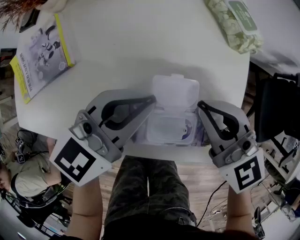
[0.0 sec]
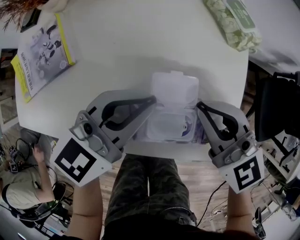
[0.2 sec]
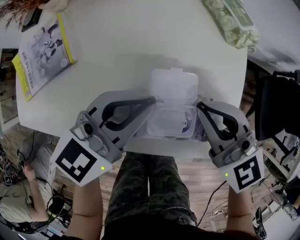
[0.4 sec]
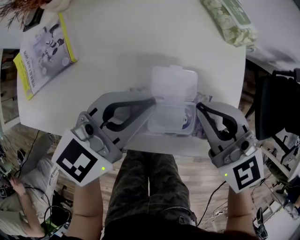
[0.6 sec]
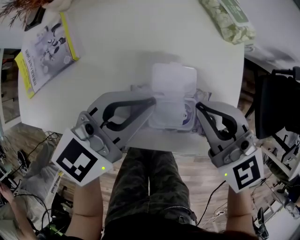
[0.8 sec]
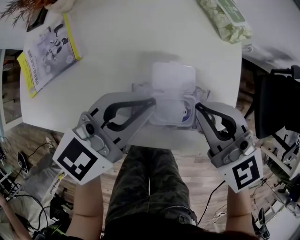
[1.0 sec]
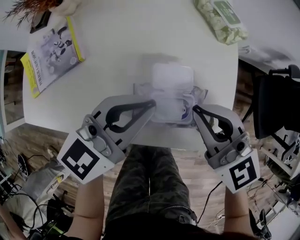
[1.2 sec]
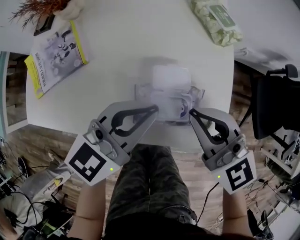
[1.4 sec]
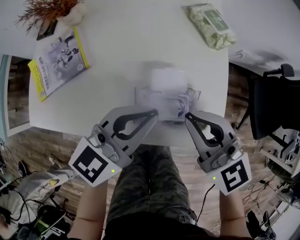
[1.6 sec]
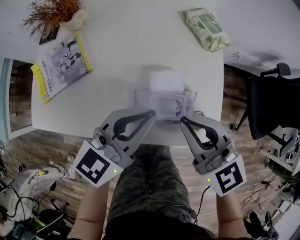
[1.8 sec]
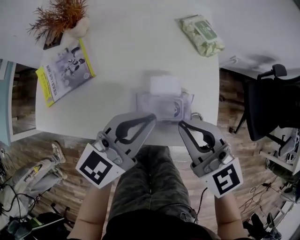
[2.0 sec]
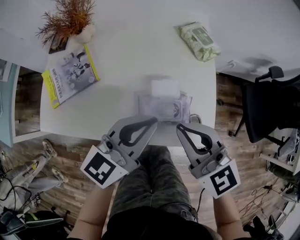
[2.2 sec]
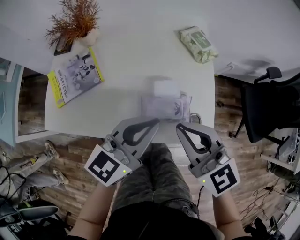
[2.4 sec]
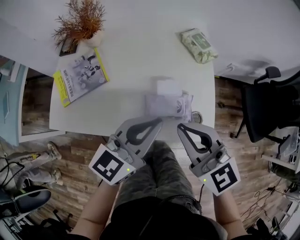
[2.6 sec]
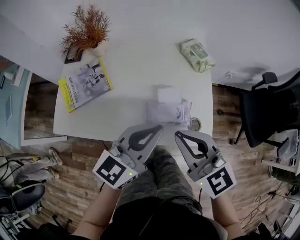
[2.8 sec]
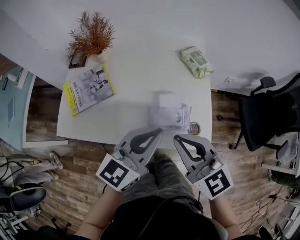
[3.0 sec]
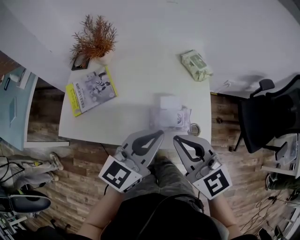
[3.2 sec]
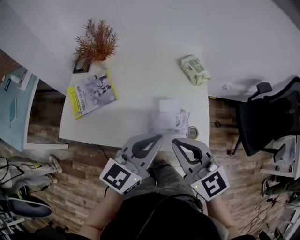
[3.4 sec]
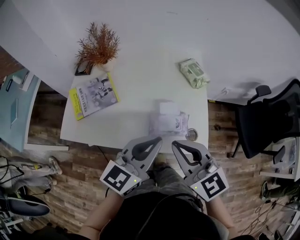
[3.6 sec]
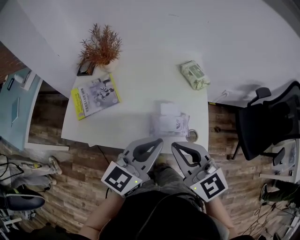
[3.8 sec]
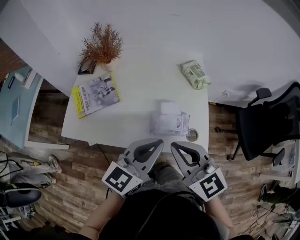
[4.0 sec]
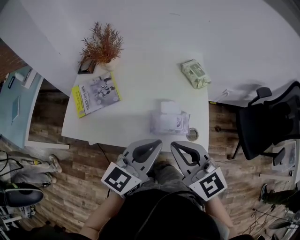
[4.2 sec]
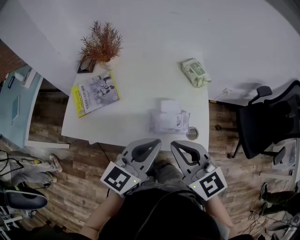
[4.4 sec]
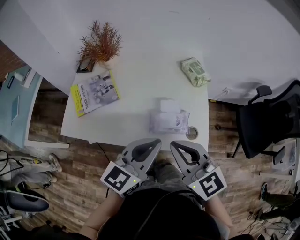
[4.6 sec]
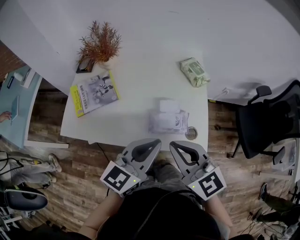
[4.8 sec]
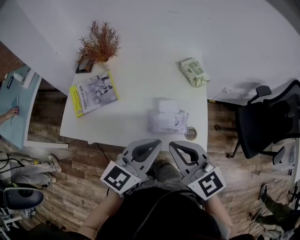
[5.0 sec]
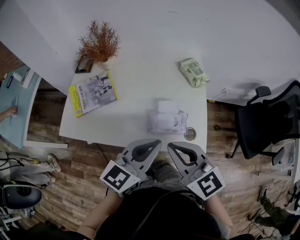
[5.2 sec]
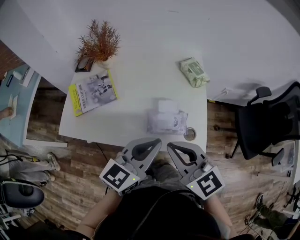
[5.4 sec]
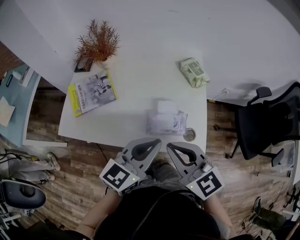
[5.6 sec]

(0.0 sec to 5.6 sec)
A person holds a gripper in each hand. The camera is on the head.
0.0 sec - 1.4 sec: Both grippers travel together backward, about 5 cm.
1.4 sec - 2.8 sec: The grippers both shift upward and backward by approximately 10 cm.
2.8 sec - 5.6 sec: There are only small adjustments of the grippers.

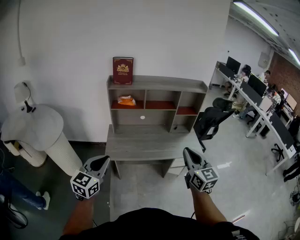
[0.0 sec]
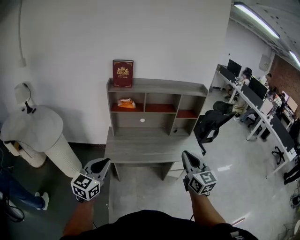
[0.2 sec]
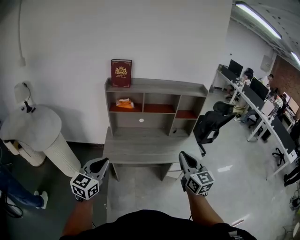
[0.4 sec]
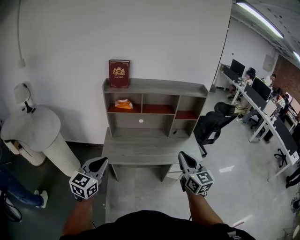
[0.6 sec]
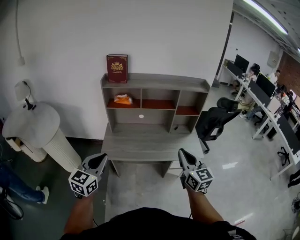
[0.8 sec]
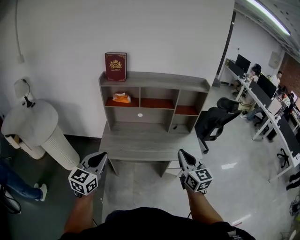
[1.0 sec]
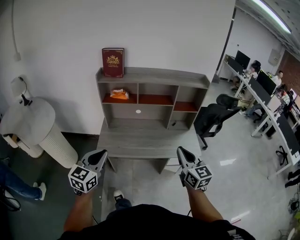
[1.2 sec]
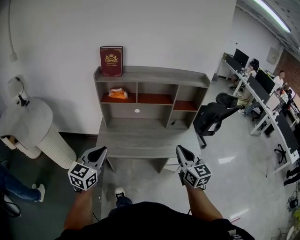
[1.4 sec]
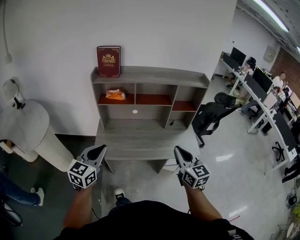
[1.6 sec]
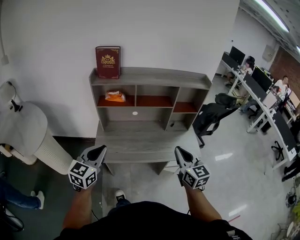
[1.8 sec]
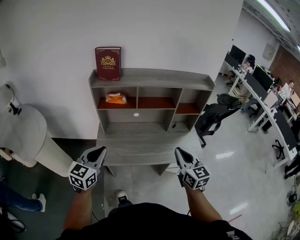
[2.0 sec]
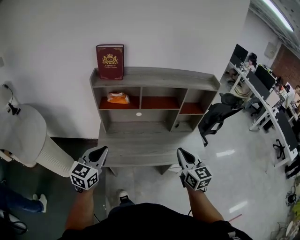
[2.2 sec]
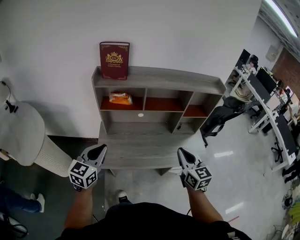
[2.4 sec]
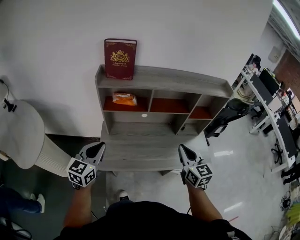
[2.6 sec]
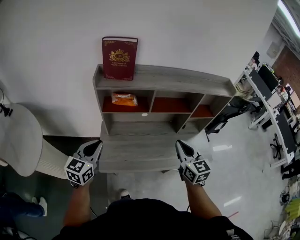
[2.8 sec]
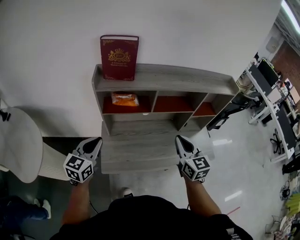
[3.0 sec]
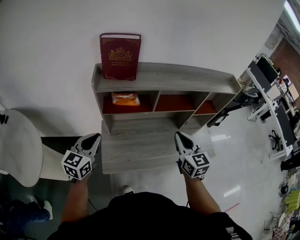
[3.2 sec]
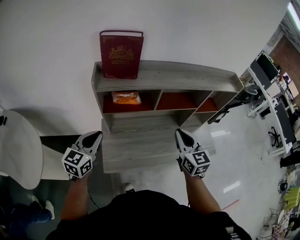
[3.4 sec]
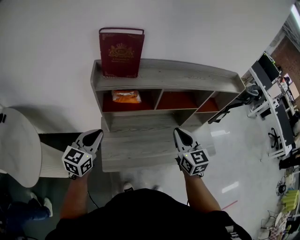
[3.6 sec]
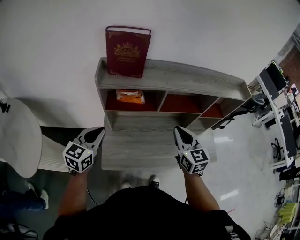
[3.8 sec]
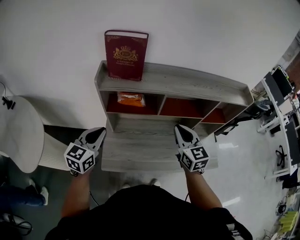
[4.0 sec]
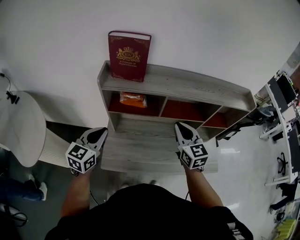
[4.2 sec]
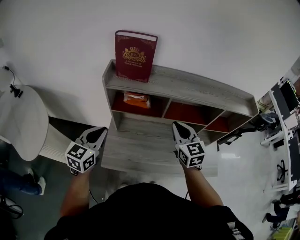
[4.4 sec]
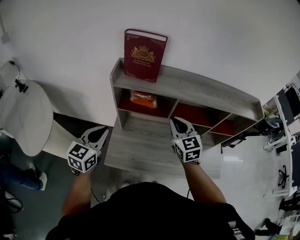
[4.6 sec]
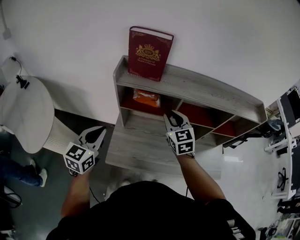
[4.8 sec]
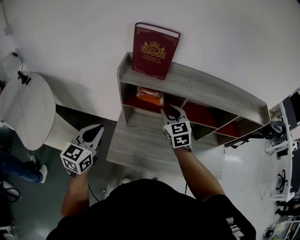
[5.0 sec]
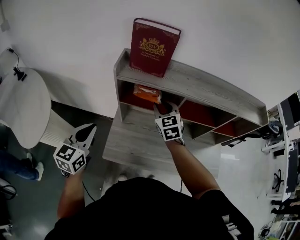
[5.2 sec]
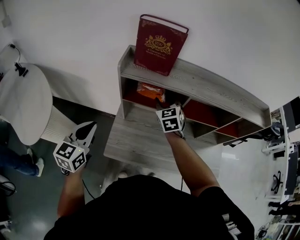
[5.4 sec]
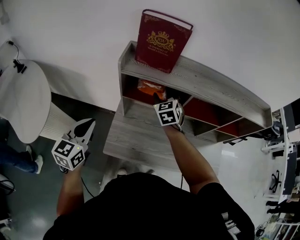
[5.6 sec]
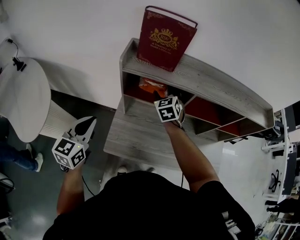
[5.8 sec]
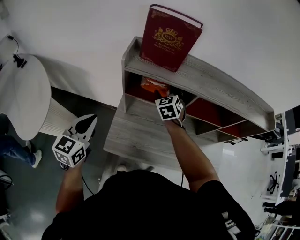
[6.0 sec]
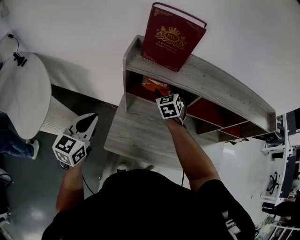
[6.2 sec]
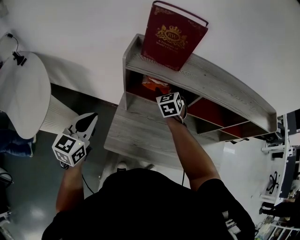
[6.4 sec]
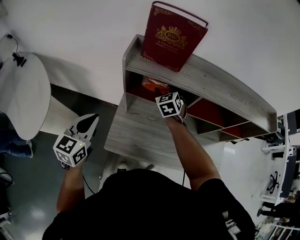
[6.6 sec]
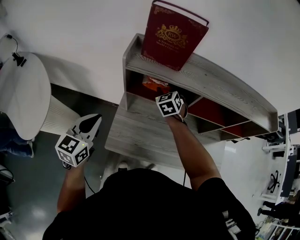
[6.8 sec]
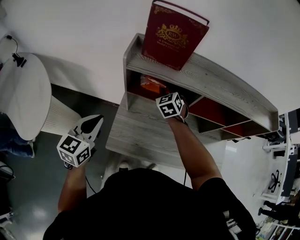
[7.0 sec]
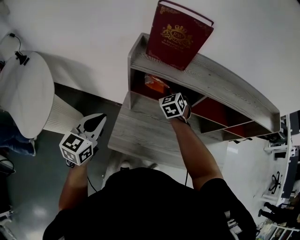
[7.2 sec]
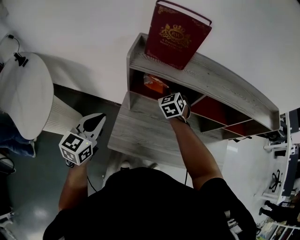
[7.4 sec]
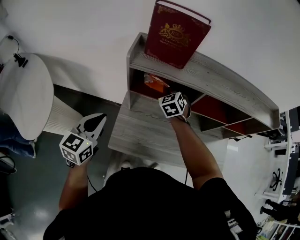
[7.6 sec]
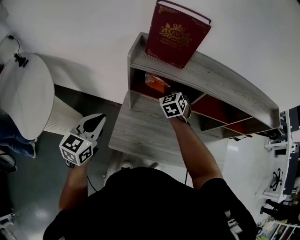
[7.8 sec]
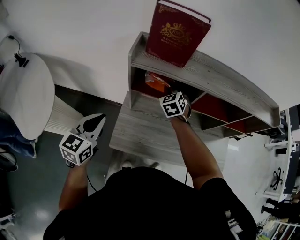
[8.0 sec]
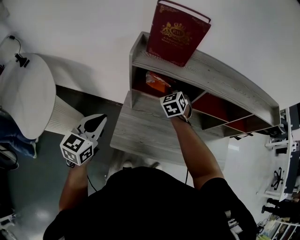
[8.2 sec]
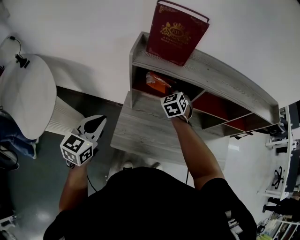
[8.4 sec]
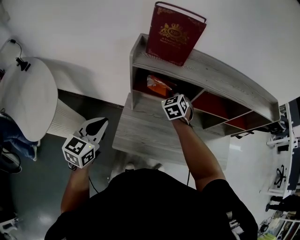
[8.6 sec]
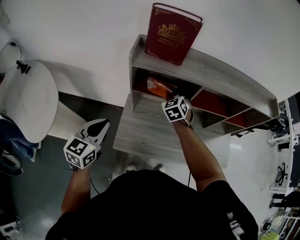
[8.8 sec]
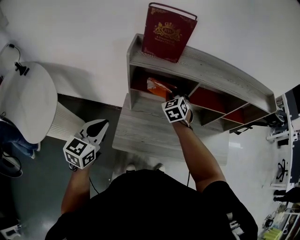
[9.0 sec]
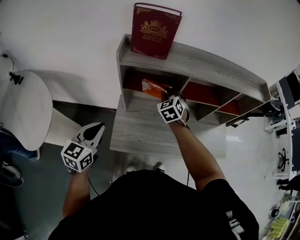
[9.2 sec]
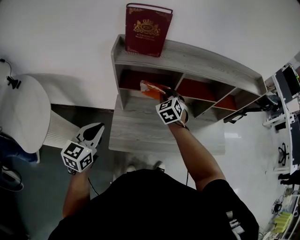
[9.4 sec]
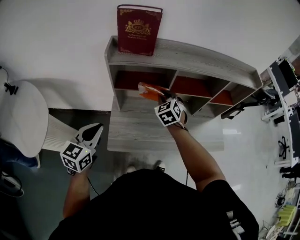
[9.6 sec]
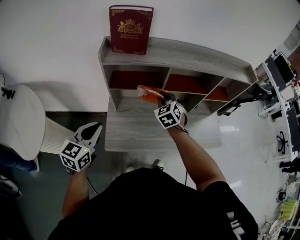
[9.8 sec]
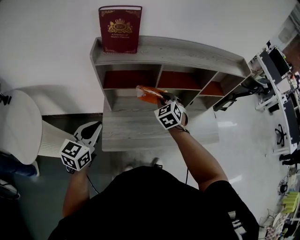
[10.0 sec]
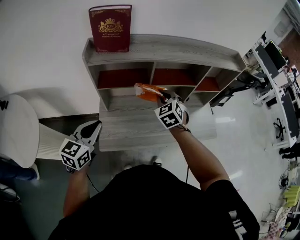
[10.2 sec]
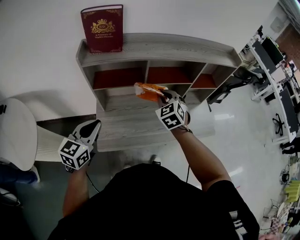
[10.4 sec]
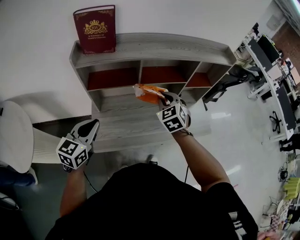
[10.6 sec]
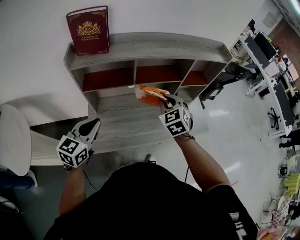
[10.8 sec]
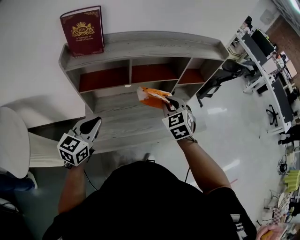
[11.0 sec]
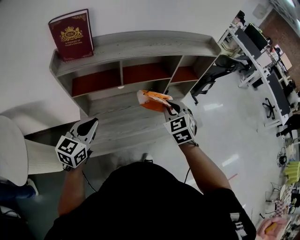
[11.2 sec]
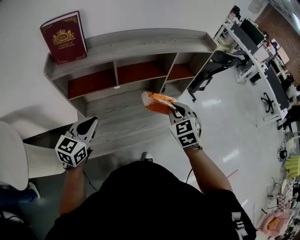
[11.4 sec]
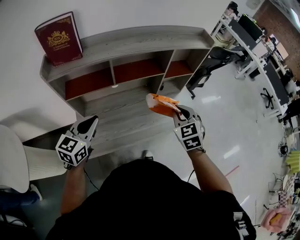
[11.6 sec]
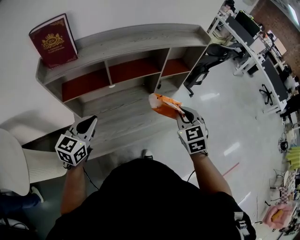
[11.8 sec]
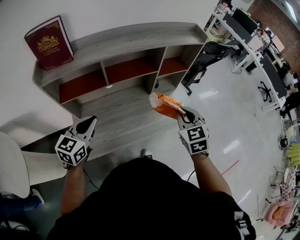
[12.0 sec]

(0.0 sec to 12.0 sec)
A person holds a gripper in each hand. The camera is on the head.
0.0 sec - 1.6 sec: The left gripper goes some 15 cm forward and to the right. The right gripper is displaced forward and downward by roughly 15 cm.
1.6 sec - 3.0 sec: The grippers both shift forward and to the left by about 30 cm.
3.0 sec - 4.4 sec: The right gripper is displaced forward by about 10 cm.
4.4 sec - 6.0 sec: The left gripper travels to the left by approximately 10 cm, while the right gripper moves forward, to the left and downward, about 25 cm, changes its angle by some 30 degrees, and opens.
6.0 sec - 7.6 sec: The right gripper closes up.
7.6 sec - 9.0 sec: The left gripper changes place by approximately 5 cm; the right gripper travels backward by roughly 5 cm.
9.0 sec - 10.4 sec: The right gripper goes about 20 cm to the right and backward, while the left gripper travels to the right by roughly 10 cm.
10.4 sec - 12.0 sec: The right gripper travels to the right by about 25 cm, and changes its angle by some 20 degrees; the left gripper is displaced to the right and forward by some 15 cm.

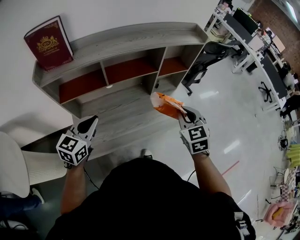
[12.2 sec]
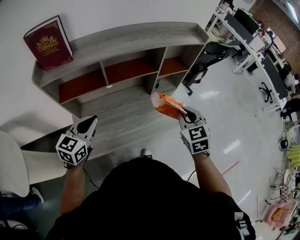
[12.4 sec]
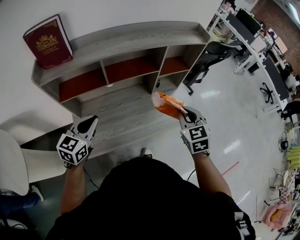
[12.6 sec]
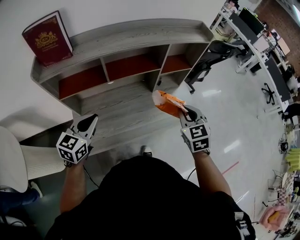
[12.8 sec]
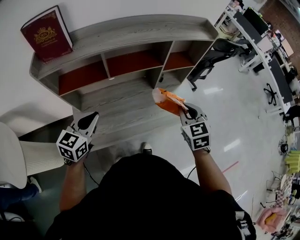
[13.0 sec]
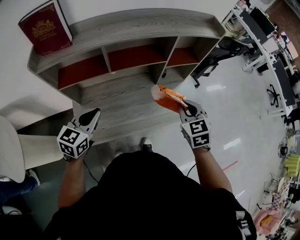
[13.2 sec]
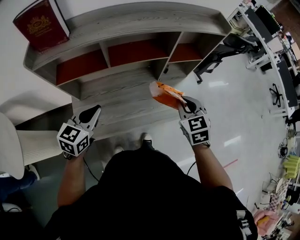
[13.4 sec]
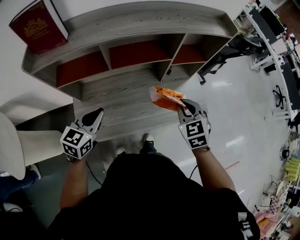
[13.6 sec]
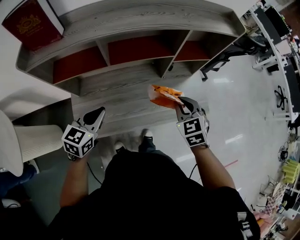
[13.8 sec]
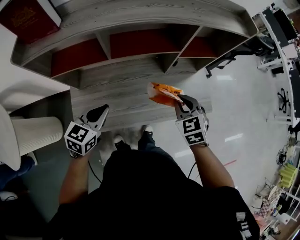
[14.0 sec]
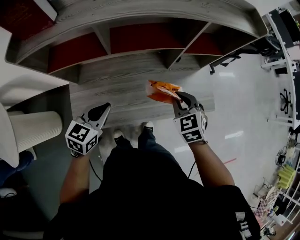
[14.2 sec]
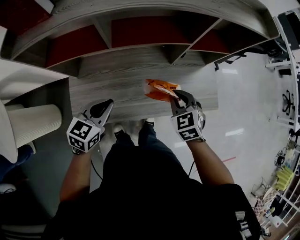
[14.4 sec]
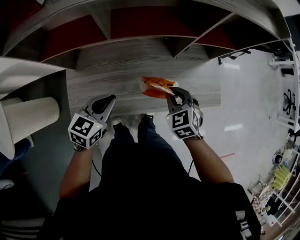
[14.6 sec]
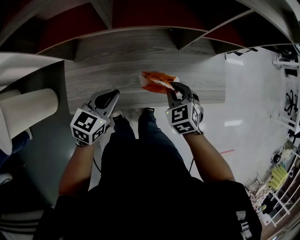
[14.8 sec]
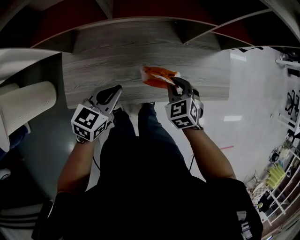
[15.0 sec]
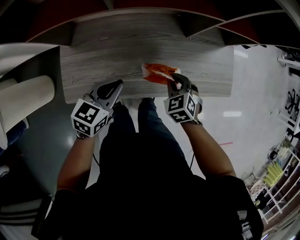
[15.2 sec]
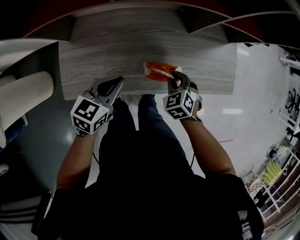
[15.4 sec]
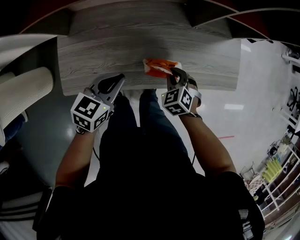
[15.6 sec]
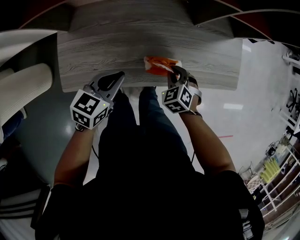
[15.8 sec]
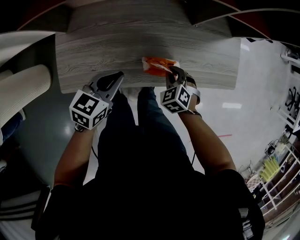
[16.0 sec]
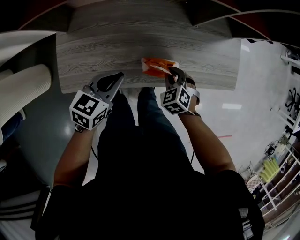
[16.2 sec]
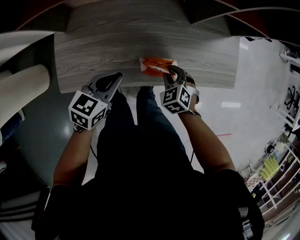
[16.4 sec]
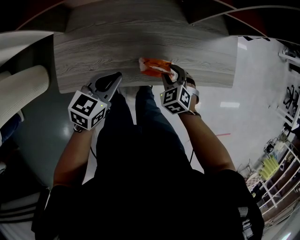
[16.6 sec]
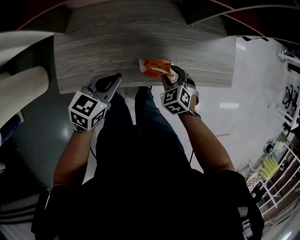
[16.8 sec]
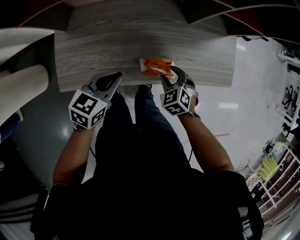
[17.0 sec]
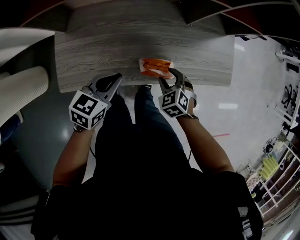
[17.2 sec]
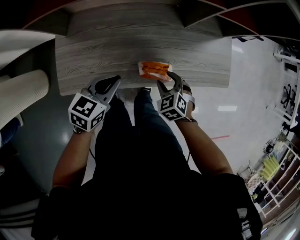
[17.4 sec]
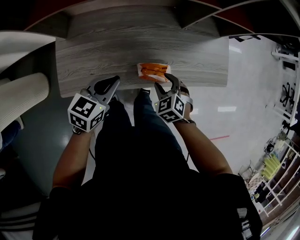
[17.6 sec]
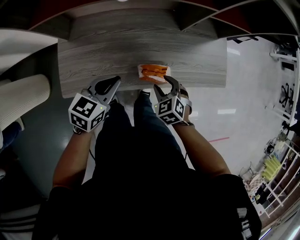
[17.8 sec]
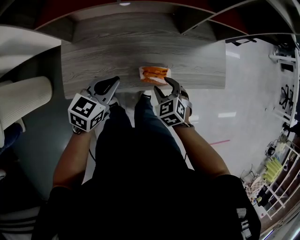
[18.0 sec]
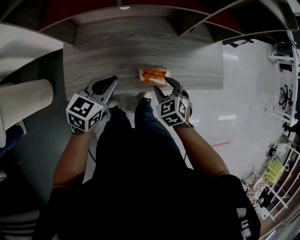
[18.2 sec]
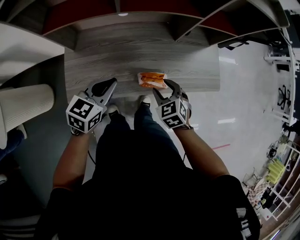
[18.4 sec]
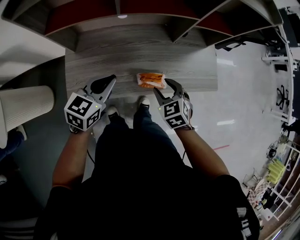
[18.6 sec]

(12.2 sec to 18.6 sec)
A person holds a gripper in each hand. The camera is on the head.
12.2 sec - 13.8 sec: The left gripper moves downward, roughly 10 cm. The right gripper goes about 15 cm downward and forward.
13.8 sec - 15.4 sec: The right gripper moves downward, roughly 25 cm, and swivels approximately 30 degrees; the left gripper travels downward by roughly 20 cm.
15.4 sec - 17.0 sec: The right gripper opens up.
17.0 sec - 18.6 sec: The two grippers go about 15 cm upward.
